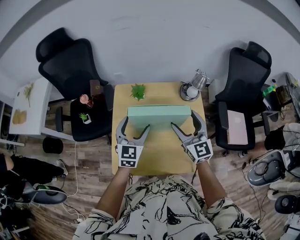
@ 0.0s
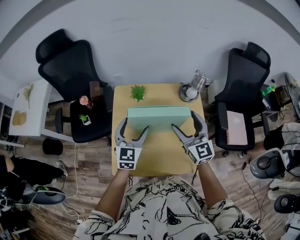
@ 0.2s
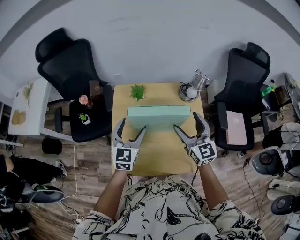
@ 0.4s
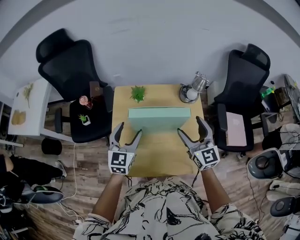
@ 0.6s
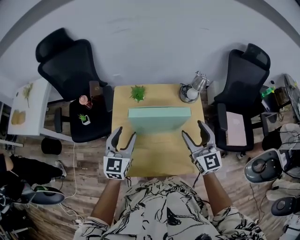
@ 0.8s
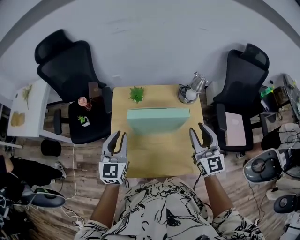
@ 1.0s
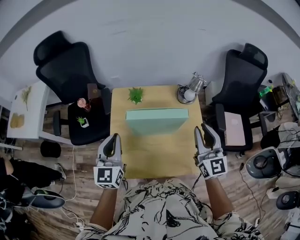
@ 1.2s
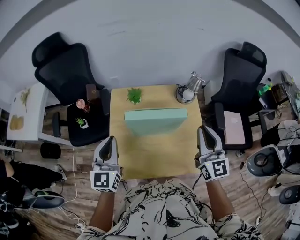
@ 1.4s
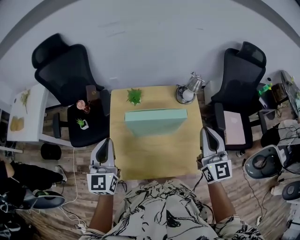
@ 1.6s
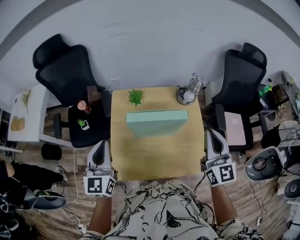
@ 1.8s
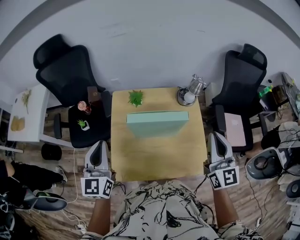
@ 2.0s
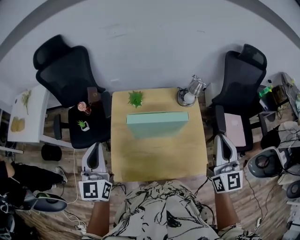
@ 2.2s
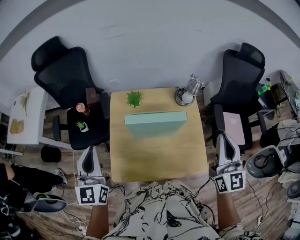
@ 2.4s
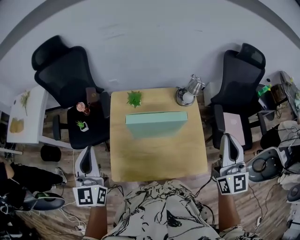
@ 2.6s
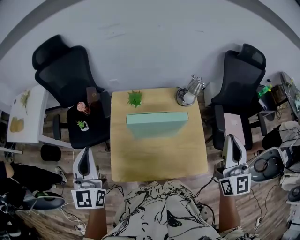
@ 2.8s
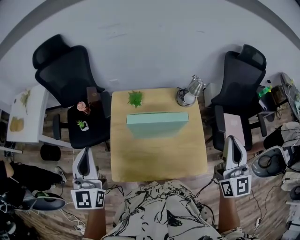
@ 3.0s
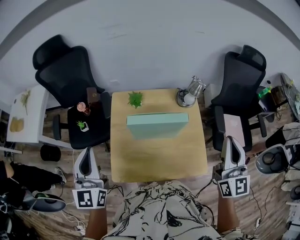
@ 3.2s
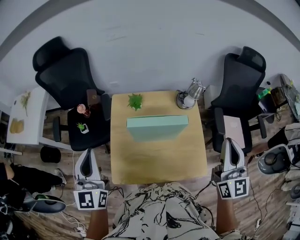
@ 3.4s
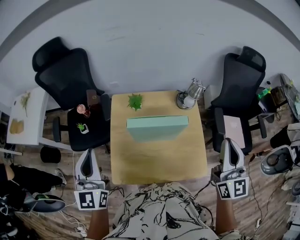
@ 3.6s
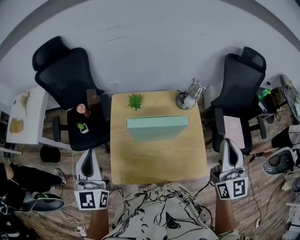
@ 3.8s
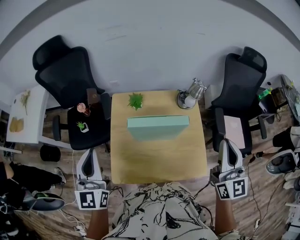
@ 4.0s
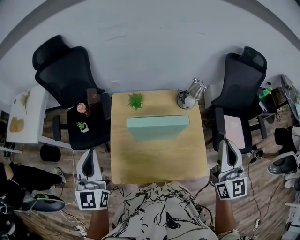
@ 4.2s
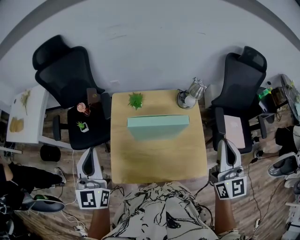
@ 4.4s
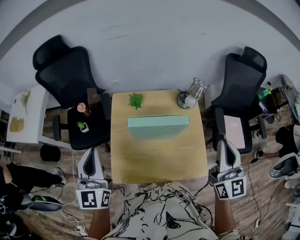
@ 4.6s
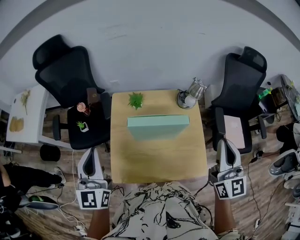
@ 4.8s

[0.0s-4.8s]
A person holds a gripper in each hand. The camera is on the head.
0.0s to 1.6s: The left gripper moves to the left, upward and backward, some 15 cm, and closes, while the right gripper heads upward, to the right and backward, covering roughly 15 cm, and closes its fingers.
1.6s to 3.2s: The left gripper goes approximately 5 cm upward. Meanwhile the right gripper travels upward and to the right by approximately 10 cm.
3.2s to 4.8s: There are only small adjustments of the grippers.

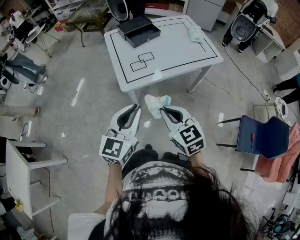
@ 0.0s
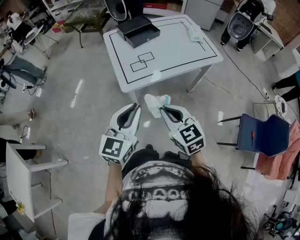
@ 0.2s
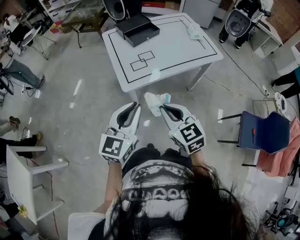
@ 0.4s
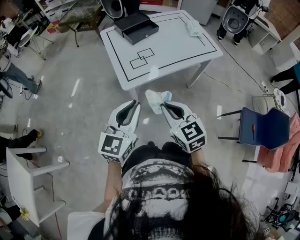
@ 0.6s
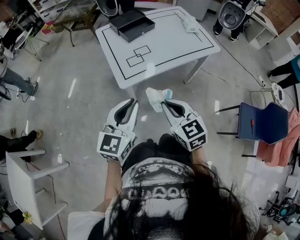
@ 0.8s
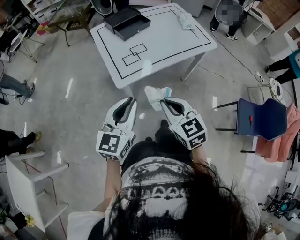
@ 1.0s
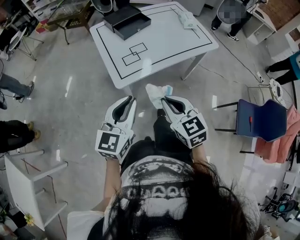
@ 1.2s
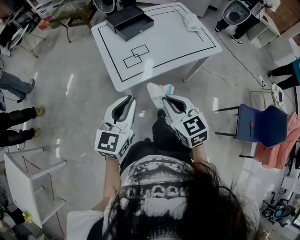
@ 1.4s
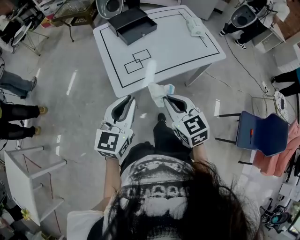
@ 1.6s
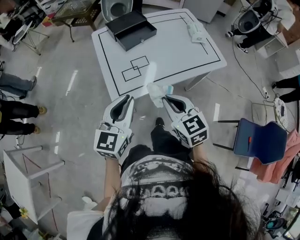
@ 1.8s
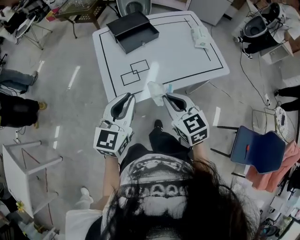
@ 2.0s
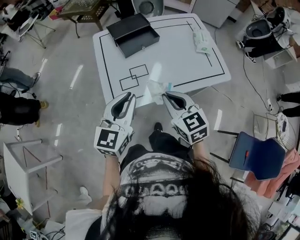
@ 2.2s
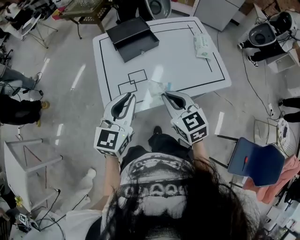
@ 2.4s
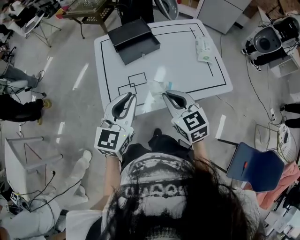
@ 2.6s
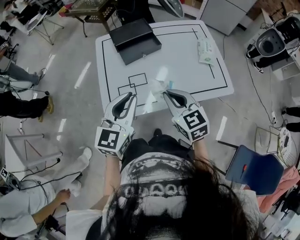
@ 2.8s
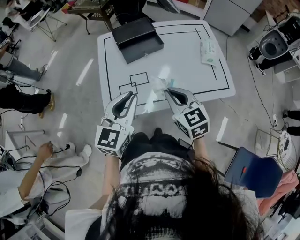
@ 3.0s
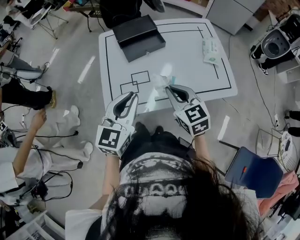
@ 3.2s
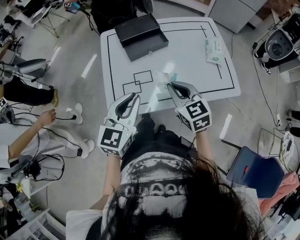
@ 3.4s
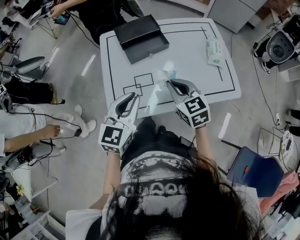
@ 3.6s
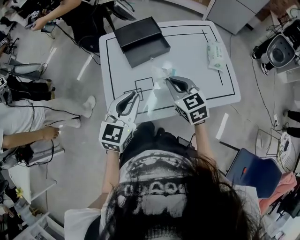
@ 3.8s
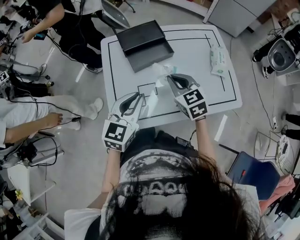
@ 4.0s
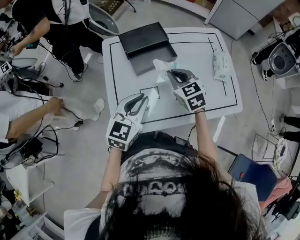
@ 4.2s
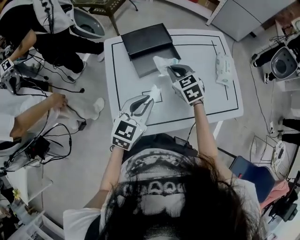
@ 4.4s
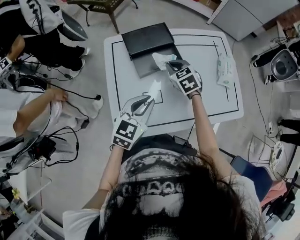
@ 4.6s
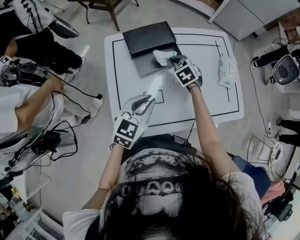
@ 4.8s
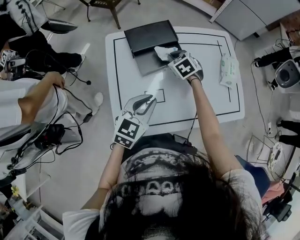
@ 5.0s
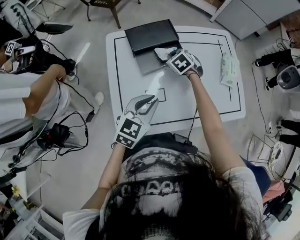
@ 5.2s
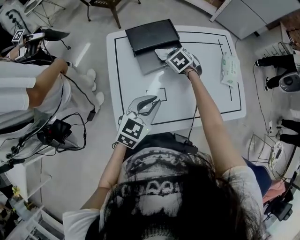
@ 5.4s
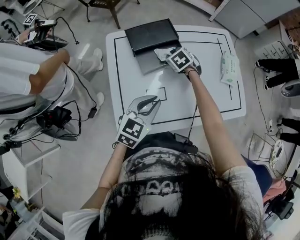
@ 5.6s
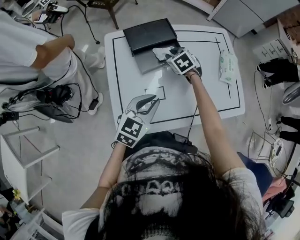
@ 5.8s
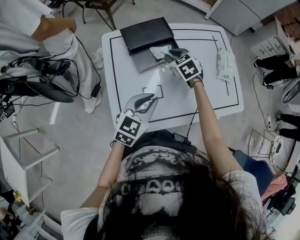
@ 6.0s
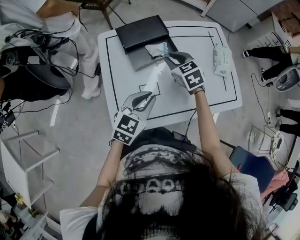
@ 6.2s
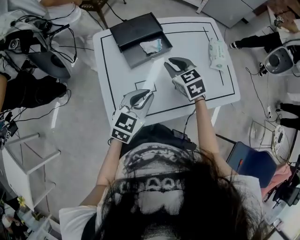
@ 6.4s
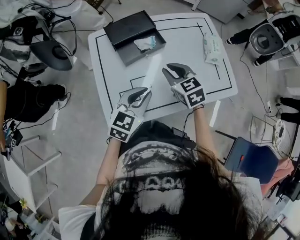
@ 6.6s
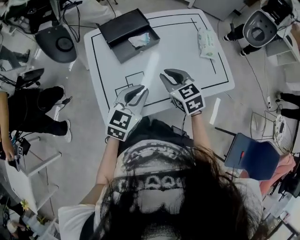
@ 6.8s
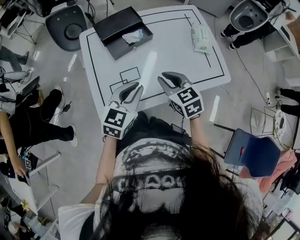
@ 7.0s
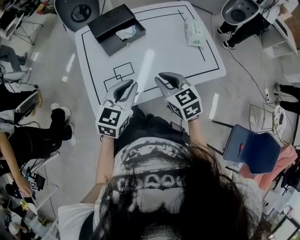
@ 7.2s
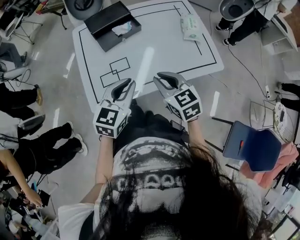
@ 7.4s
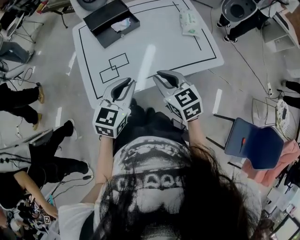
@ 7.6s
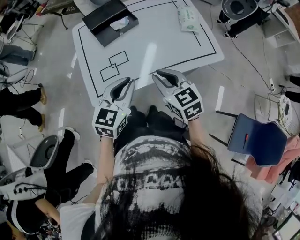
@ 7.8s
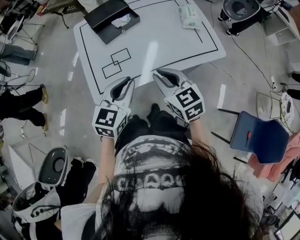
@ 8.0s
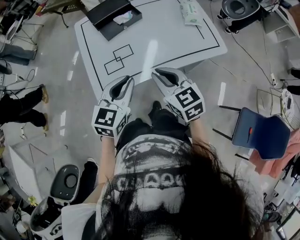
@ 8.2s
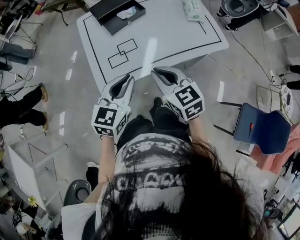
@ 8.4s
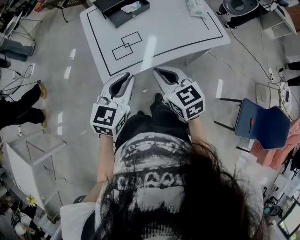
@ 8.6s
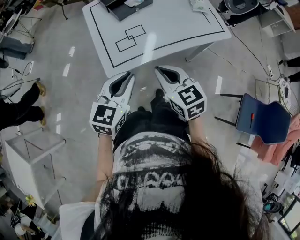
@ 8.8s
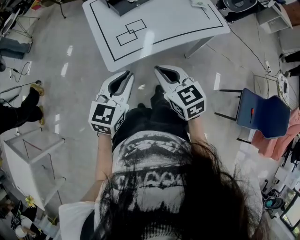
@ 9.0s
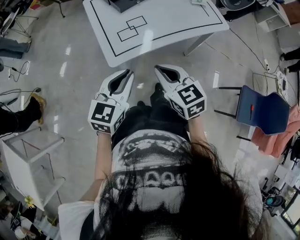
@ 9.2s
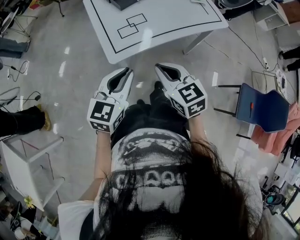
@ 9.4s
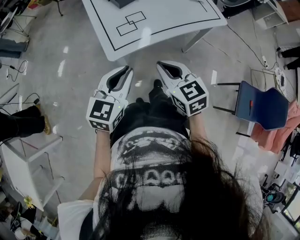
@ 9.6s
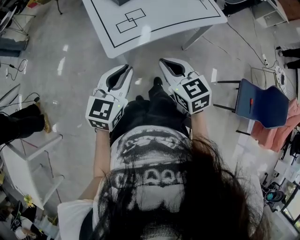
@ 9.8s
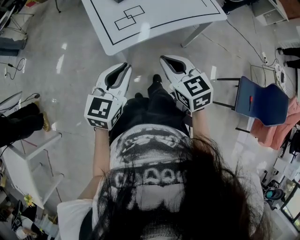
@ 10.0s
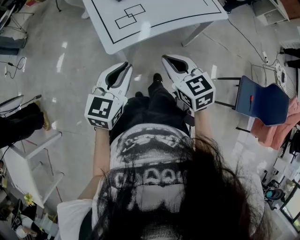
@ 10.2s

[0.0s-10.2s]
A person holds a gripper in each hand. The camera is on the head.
0.0s to 1.4s: Both grippers travel together forward, roughly 10 cm.
1.4s to 3.0s: The two grippers go about 25 cm forward and to the right.
3.0s to 4.4s: The right gripper goes approximately 25 cm forward; the left gripper is displaced forward and downward by about 15 cm.
4.4s to 5.8s: The right gripper travels forward and downward by some 10 cm.
5.8s to 7.2s: The left gripper travels to the right and backward by approximately 10 cm. Meanwhile the right gripper moves backward and to the right, about 30 cm, and swivels some 30 degrees.
7.2s to 8.8s: The two grippers go some 20 cm backward and to the left.
8.8s to 10.2s: The two grippers go about 10 cm backward.

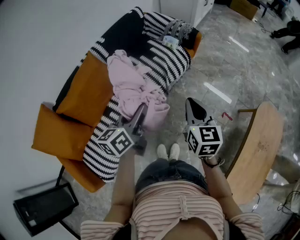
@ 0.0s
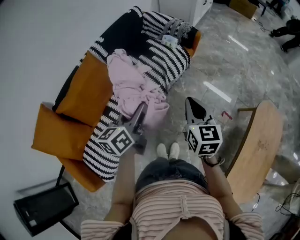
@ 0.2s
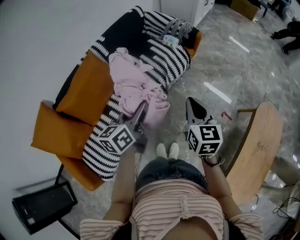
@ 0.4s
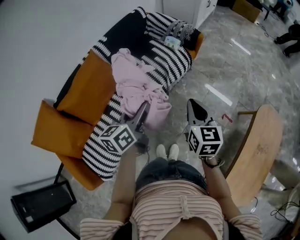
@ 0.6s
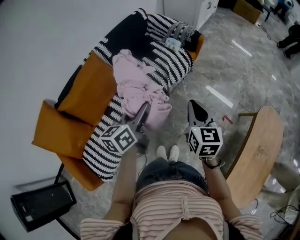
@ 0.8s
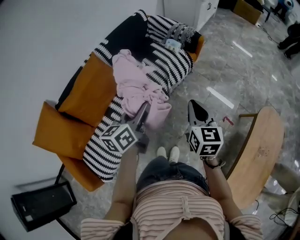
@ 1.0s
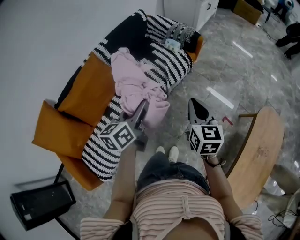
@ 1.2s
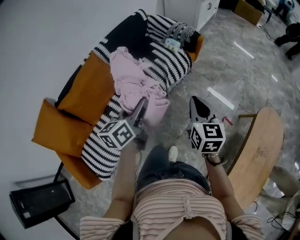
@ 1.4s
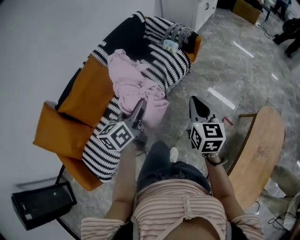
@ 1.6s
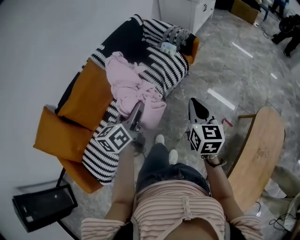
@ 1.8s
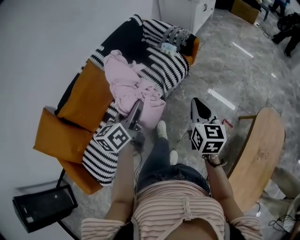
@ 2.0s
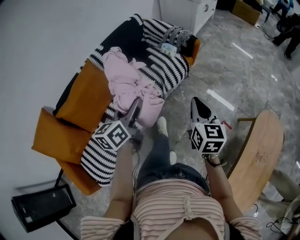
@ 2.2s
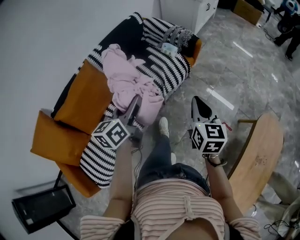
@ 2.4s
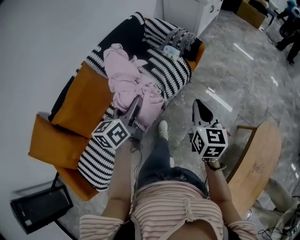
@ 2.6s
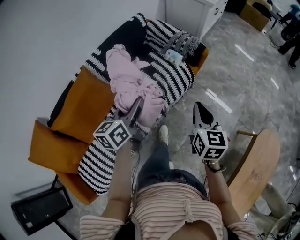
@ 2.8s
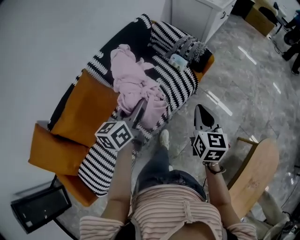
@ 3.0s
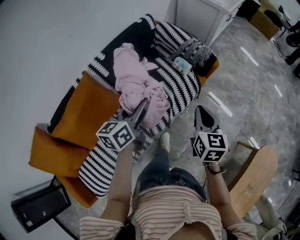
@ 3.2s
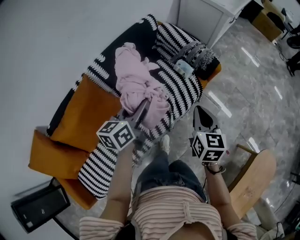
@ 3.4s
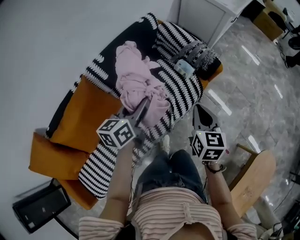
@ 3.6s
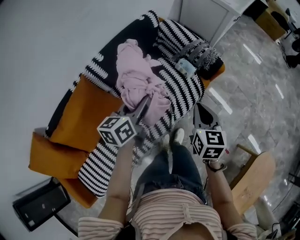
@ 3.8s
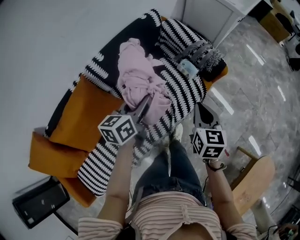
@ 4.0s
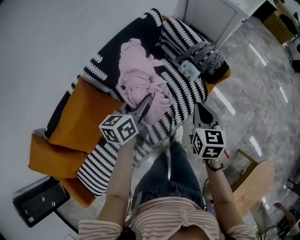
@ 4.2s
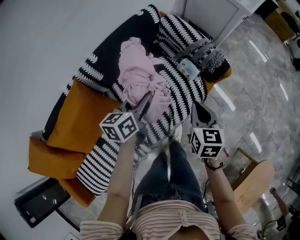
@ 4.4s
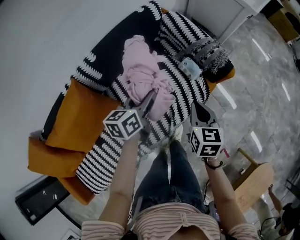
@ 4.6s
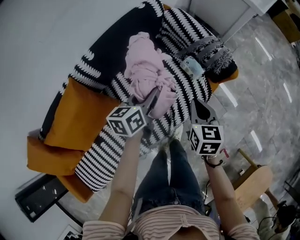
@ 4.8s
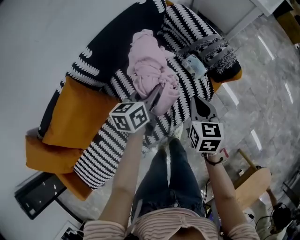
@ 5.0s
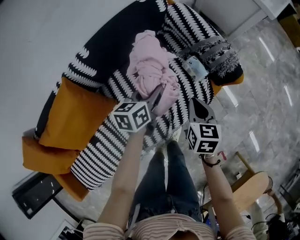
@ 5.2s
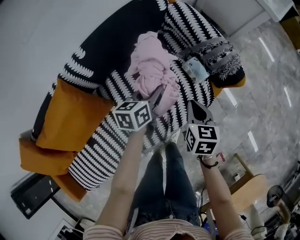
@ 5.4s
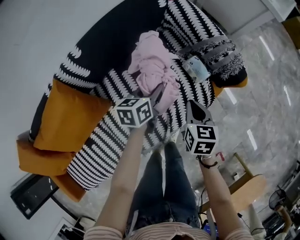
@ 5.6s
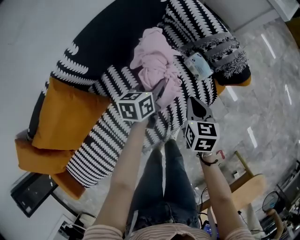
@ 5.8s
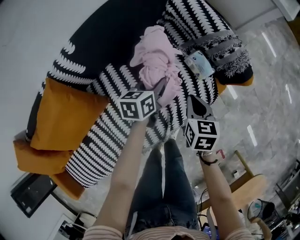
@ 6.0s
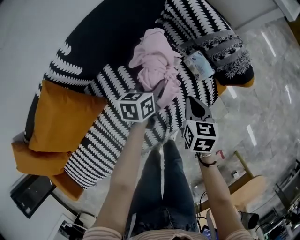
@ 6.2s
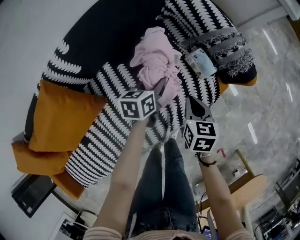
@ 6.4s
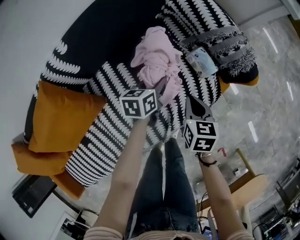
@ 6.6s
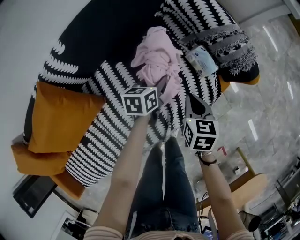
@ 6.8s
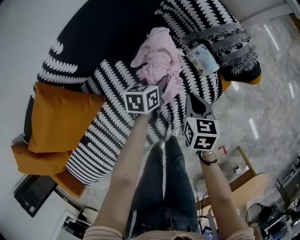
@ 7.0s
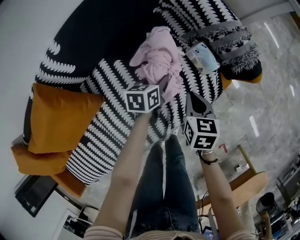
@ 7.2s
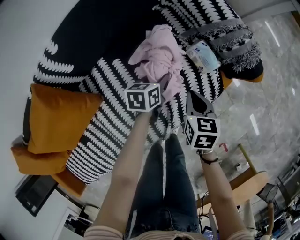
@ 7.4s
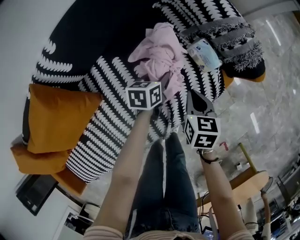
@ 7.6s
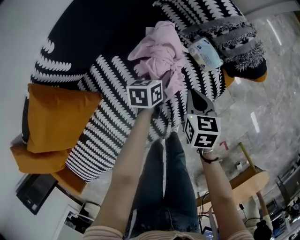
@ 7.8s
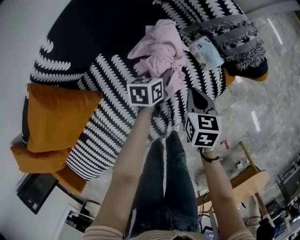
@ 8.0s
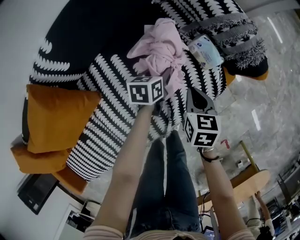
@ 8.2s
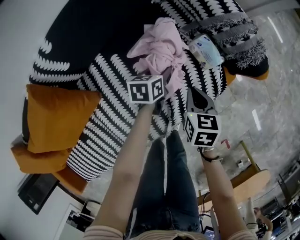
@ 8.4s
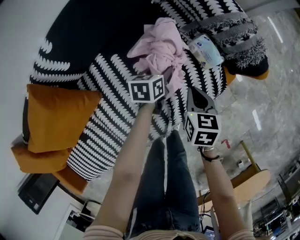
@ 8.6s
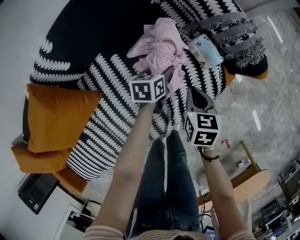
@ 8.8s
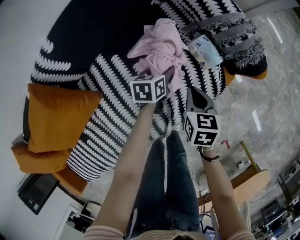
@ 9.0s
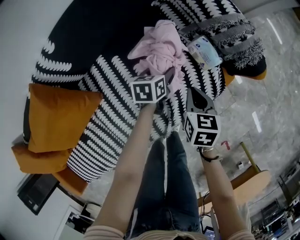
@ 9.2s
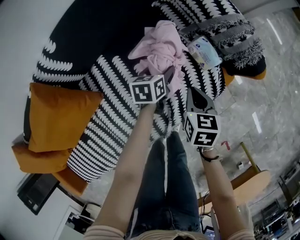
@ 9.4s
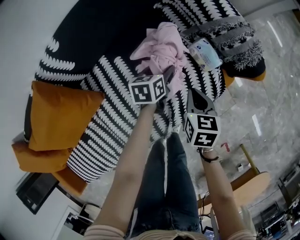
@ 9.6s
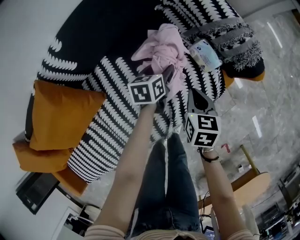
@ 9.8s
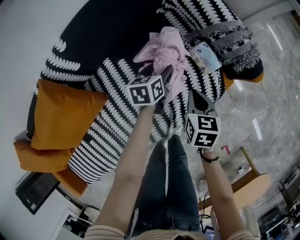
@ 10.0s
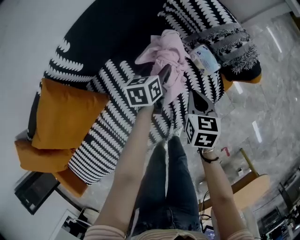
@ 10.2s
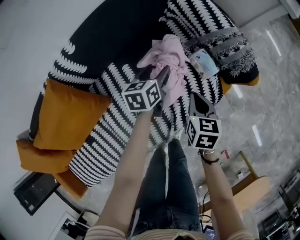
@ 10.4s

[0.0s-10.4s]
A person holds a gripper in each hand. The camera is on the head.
0.0s to 1.4s: The right gripper ends up roughly 5 cm from where it was.
1.4s to 3.0s: Both grippers travel together forward, approximately 25 cm.
3.0s to 4.4s: The grippers both shift forward and downward by about 20 cm.
4.4s to 6.0s: Both grippers move downward and forward, roughly 25 cm.
6.0s to 7.4s: The right gripper goes about 5 cm downward. The left gripper shifts some 10 cm downward.
7.4s to 9.0s: There are only small adjustments of the grippers.
9.0s to 10.4s: The right gripper heads upward, covering approximately 5 cm, while the left gripper is displaced upward by roughly 10 cm.
